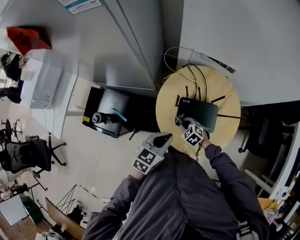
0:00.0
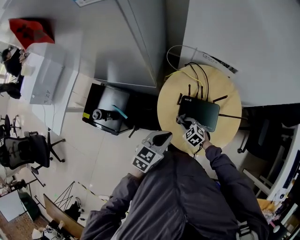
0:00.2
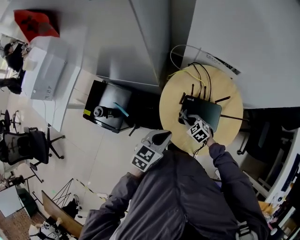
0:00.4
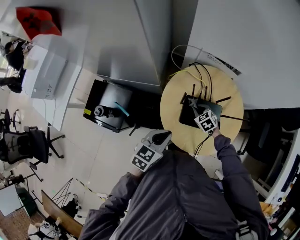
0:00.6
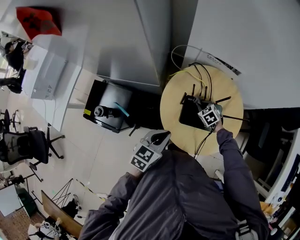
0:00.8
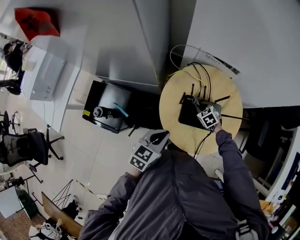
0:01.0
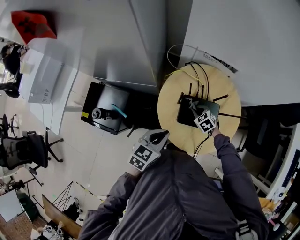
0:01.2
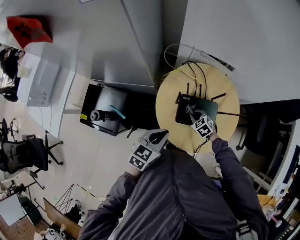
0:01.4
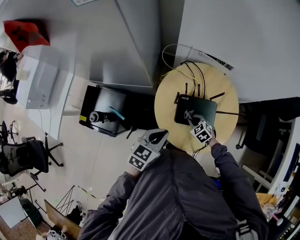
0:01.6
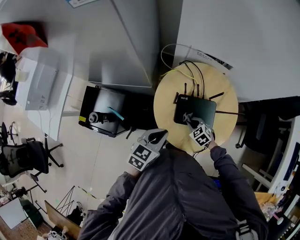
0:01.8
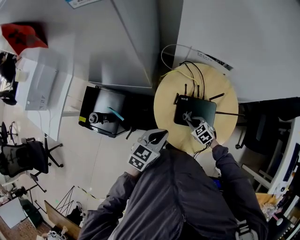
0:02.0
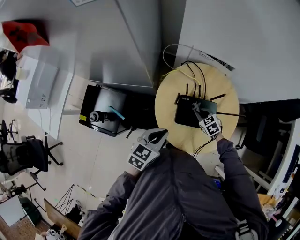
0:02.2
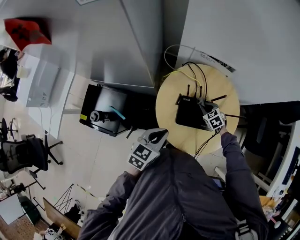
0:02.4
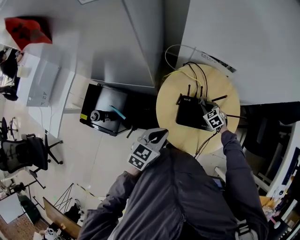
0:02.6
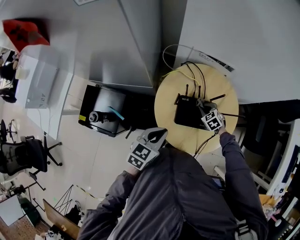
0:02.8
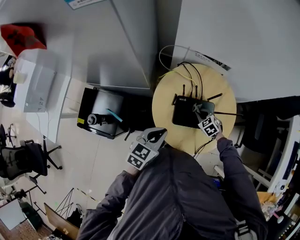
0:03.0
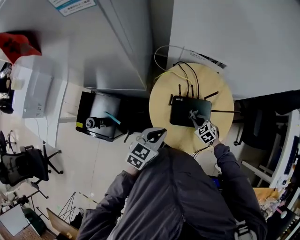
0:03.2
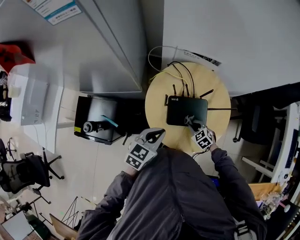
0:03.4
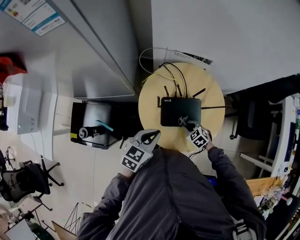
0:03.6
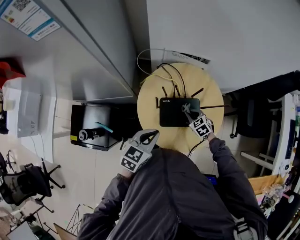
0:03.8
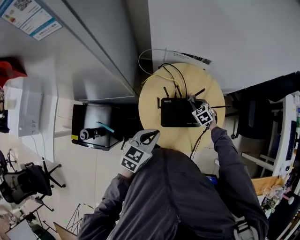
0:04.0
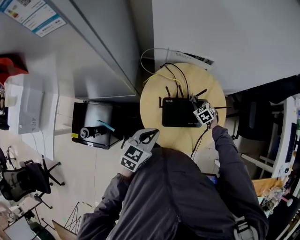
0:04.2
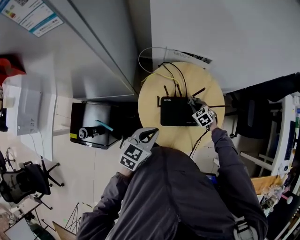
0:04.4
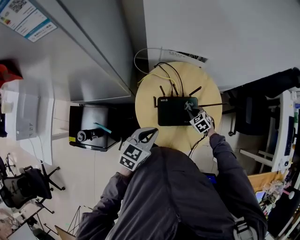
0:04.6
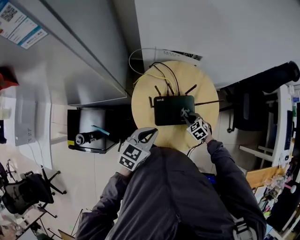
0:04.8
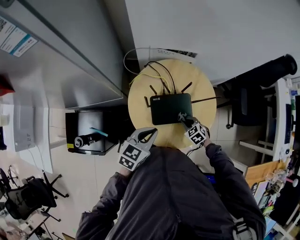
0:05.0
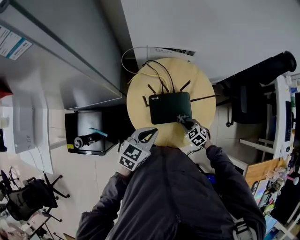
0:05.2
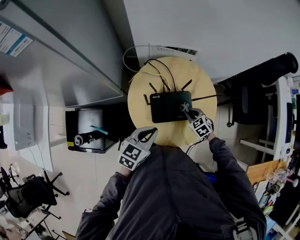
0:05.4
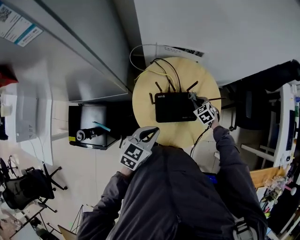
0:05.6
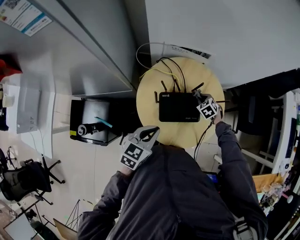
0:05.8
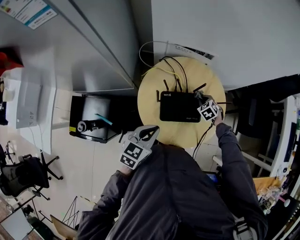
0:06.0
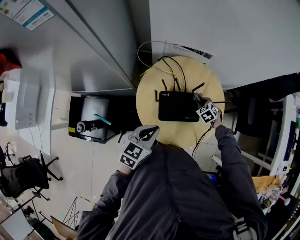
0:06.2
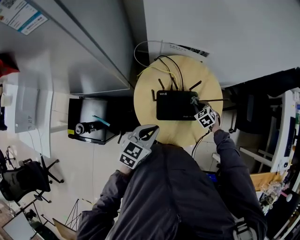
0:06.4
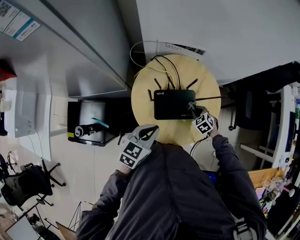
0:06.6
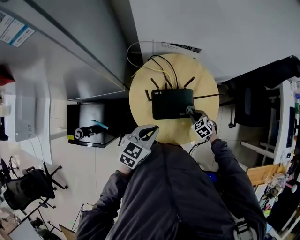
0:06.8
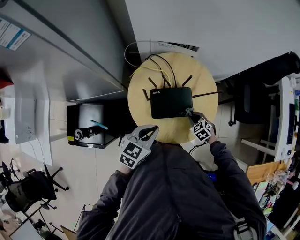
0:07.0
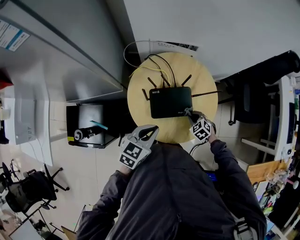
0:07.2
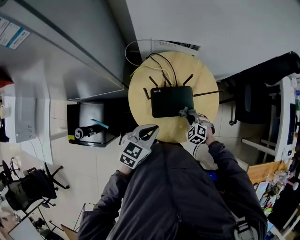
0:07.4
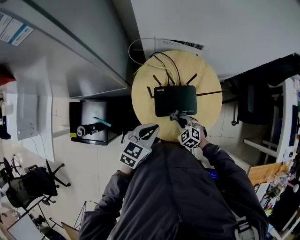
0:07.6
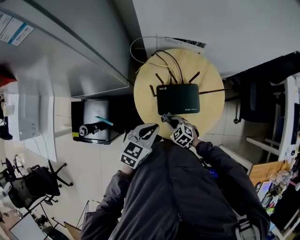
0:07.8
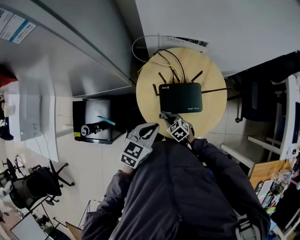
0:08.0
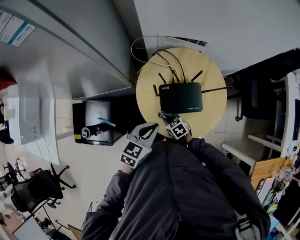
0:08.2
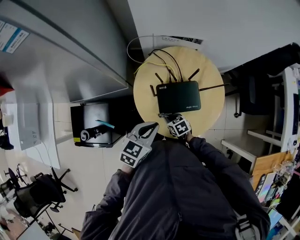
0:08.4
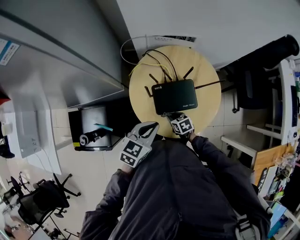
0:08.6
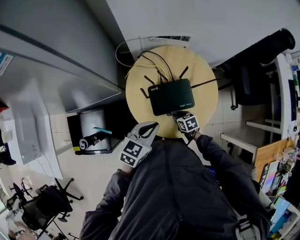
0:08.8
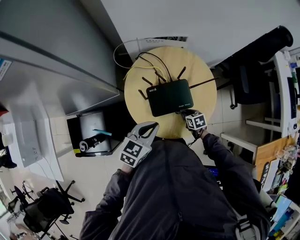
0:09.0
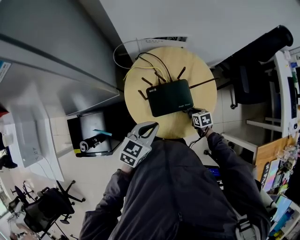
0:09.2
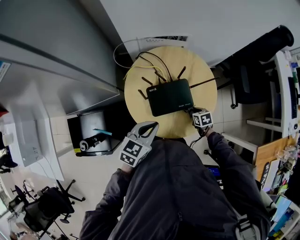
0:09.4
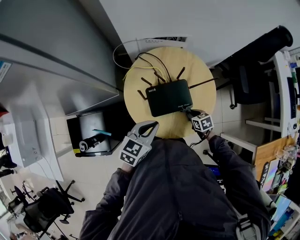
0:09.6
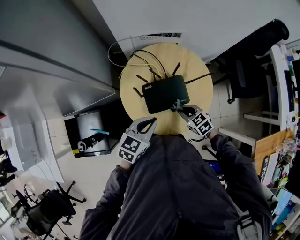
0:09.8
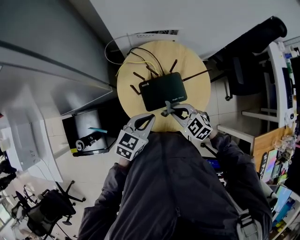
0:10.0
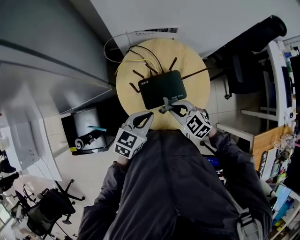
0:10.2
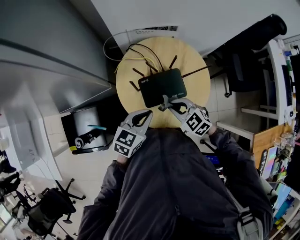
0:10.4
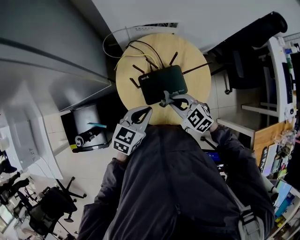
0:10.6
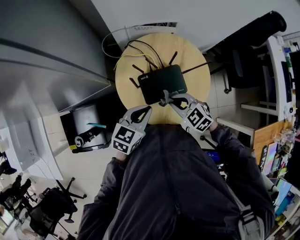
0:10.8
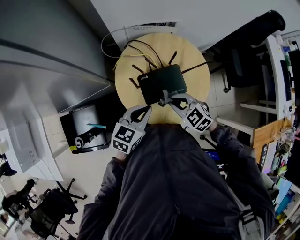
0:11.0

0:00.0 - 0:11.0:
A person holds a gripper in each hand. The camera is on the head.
0:00.0 - 0:01.6: The right gripper is displaced to the right by roughly 5 cm, and goes forward and returns, approximately 10 cm each way.
0:01.6 - 0:03.2: The right gripper shifts roughly 5 cm to the right, and goes forward and returns, roughly 10 cm each way.
0:03.2 - 0:04.8: The right gripper goes forward and backward, roughly 15 cm each way, reversing 2 times.
0:04.8 - 0:06.2: The right gripper goes some 10 cm forward.
0:06.2 - 0:07.8: The right gripper moves backward and to the left, some 25 cm.
0:07.8 - 0:09.4: The right gripper heads to the right, covering about 20 cm, and rotates around the line of its fingers by some 50 degrees, clockwise from behind.
0:09.4 - 0:11.0: The right gripper moves upward and to the left, about 25 cm, and rolls counterclockwise, seen from behind, by some 40 degrees.

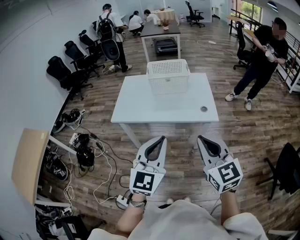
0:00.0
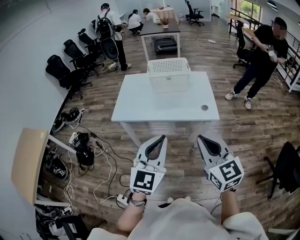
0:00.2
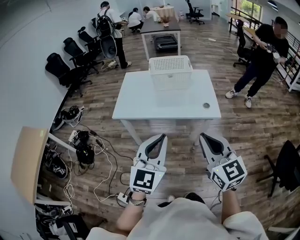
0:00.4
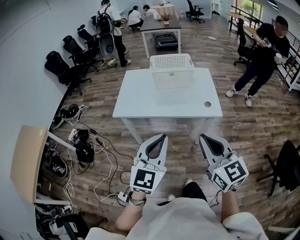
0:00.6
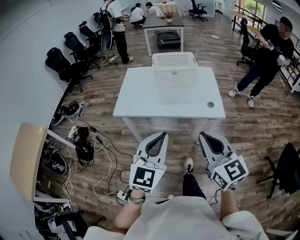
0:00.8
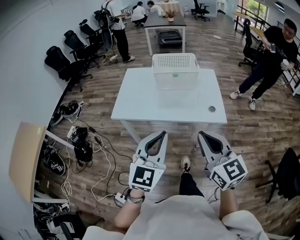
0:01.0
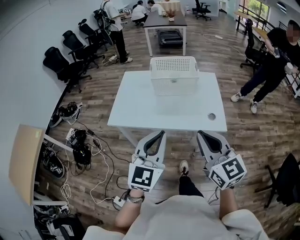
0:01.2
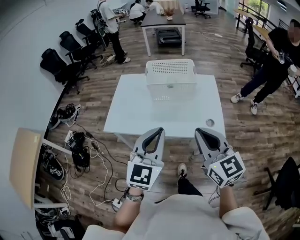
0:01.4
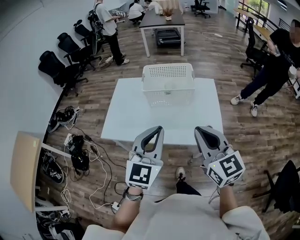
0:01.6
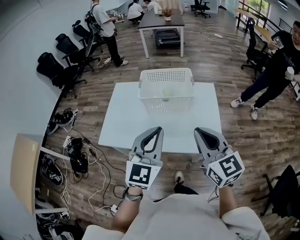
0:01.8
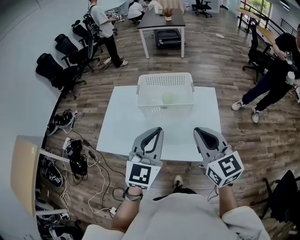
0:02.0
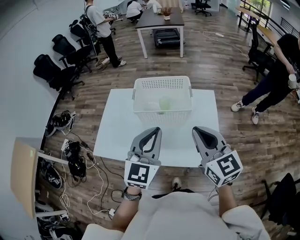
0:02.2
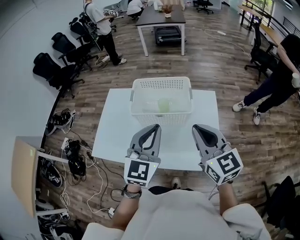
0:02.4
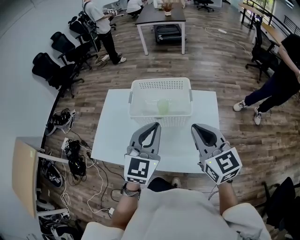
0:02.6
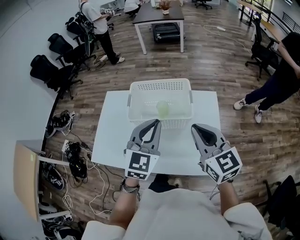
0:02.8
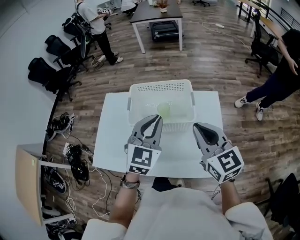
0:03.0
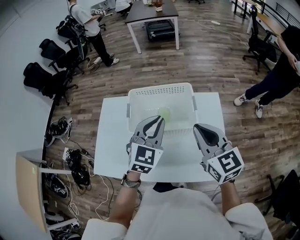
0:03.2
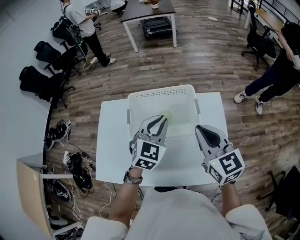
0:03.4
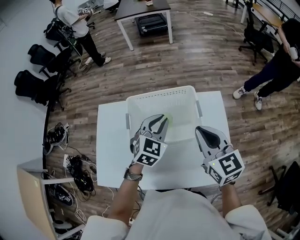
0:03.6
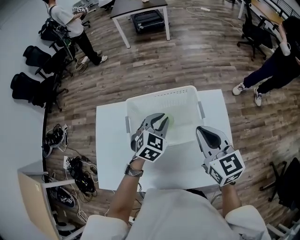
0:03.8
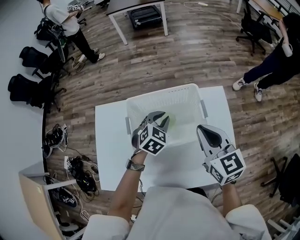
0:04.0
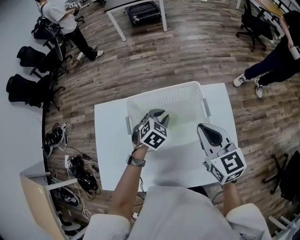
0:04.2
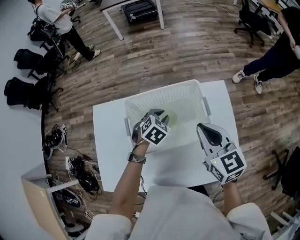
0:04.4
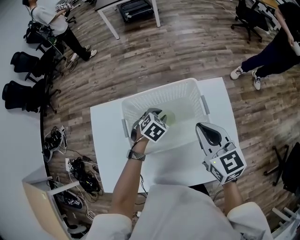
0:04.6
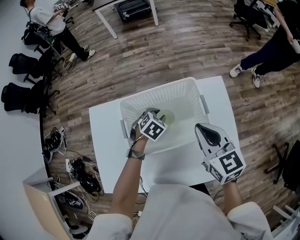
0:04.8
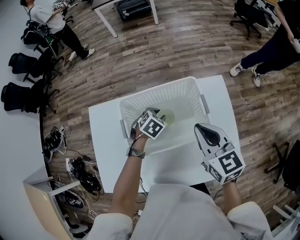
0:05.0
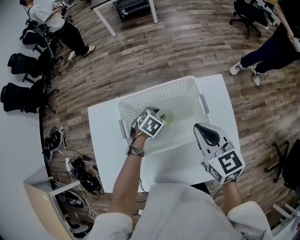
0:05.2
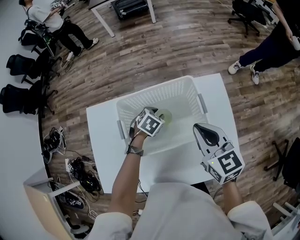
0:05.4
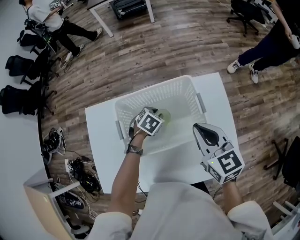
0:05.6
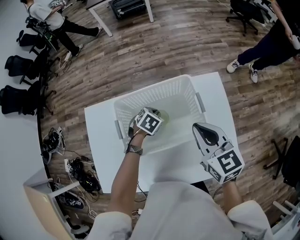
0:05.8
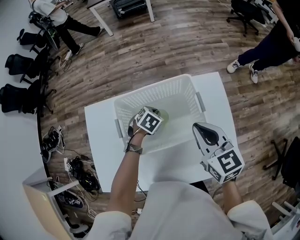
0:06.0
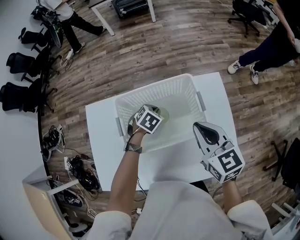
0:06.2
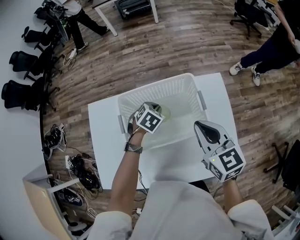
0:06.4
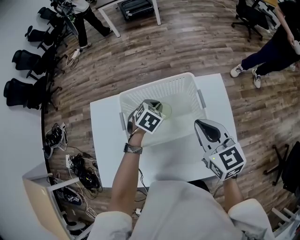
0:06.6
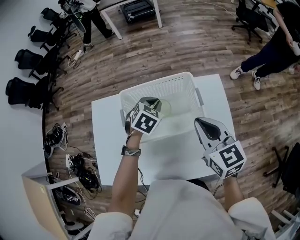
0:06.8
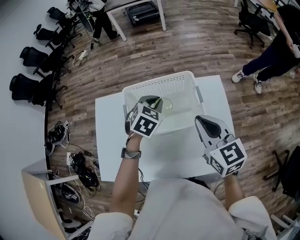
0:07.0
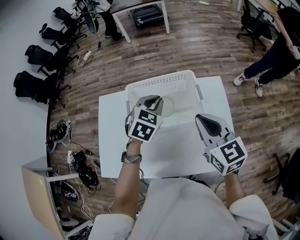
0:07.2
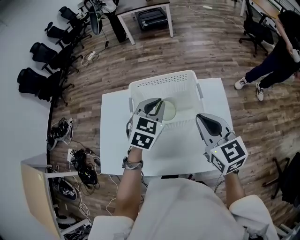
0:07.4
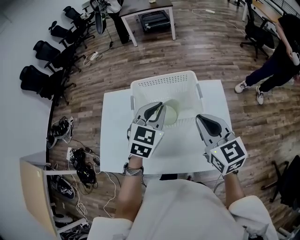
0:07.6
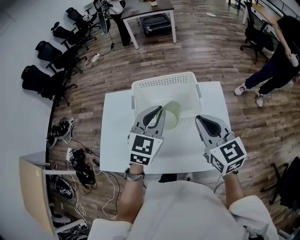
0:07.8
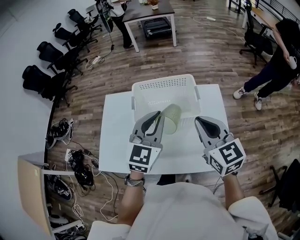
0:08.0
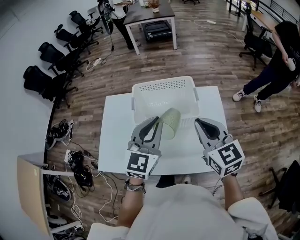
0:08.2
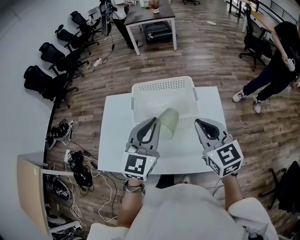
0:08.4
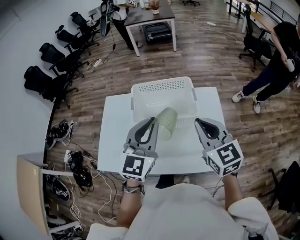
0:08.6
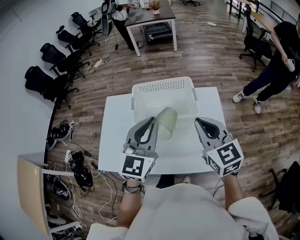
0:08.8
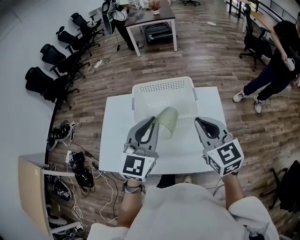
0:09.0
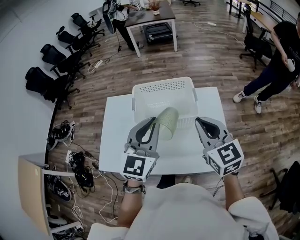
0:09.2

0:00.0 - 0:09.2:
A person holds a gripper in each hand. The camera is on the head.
0:00.0 - 0:01.6: Both grippers move forward, roughly 25 cm.
0:01.6 - 0:03.0: The two grippers go approximately 30 cm forward.
0:03.0 - 0:04.6: The left gripper heads downward and forward, covering about 35 cm, and tips its fingers downward by roughly 50 degrees. Meanwhile the right gripper travels forward and downward by some 15 cm.
0:04.6 - 0:06.2: The grippers make only small movements.
0:06.2 - 0:07.6: The right gripper travels backward and upward by about 15 cm. The left gripper moves upward and backward, roughly 30 cm, and angles its fingers upward, by roughly 40 degrees.
0:07.6 - 0:09.2: The left gripper goes about 10 cm backward and upward, and changes its angle by roughly 20 degrees.

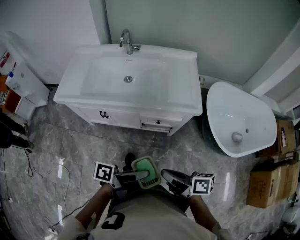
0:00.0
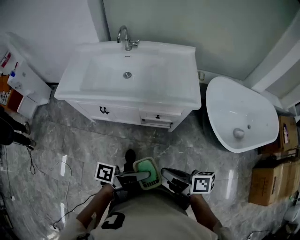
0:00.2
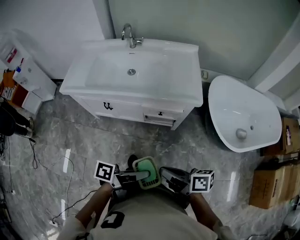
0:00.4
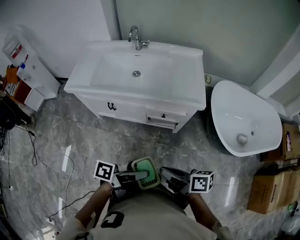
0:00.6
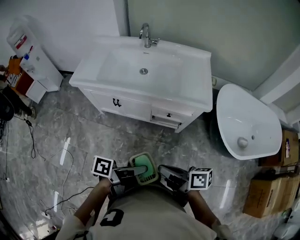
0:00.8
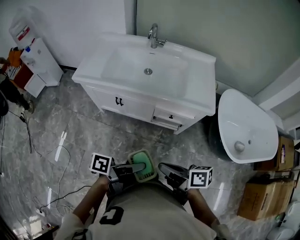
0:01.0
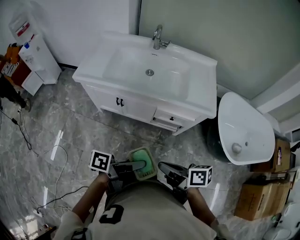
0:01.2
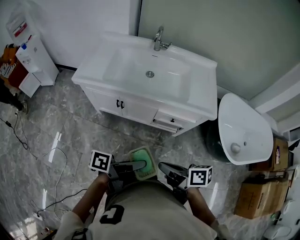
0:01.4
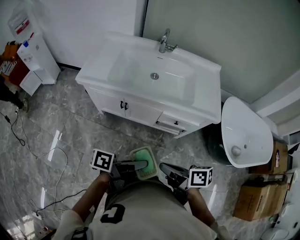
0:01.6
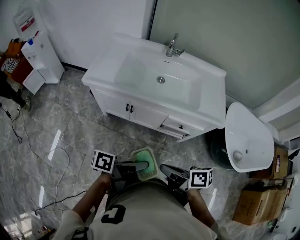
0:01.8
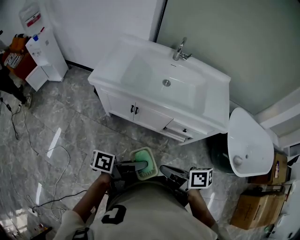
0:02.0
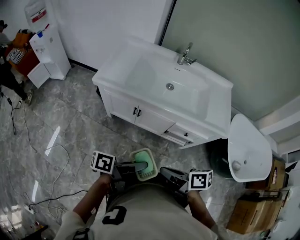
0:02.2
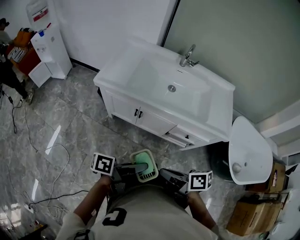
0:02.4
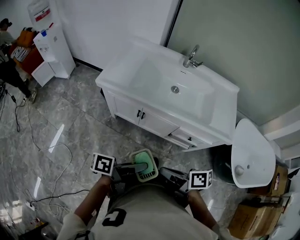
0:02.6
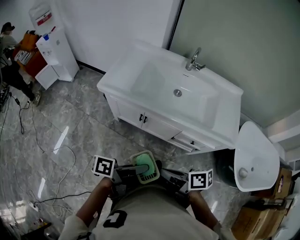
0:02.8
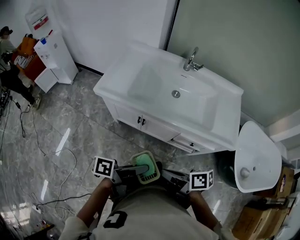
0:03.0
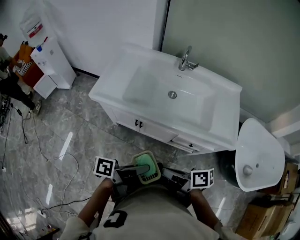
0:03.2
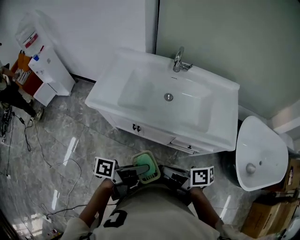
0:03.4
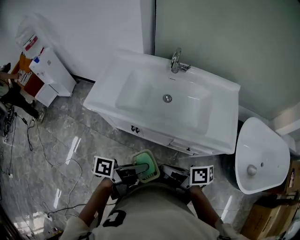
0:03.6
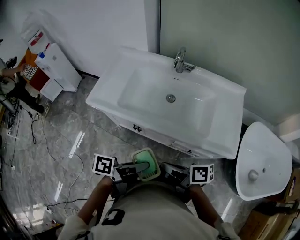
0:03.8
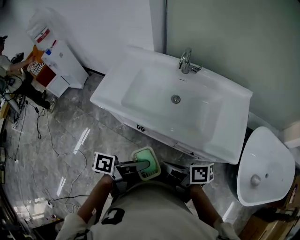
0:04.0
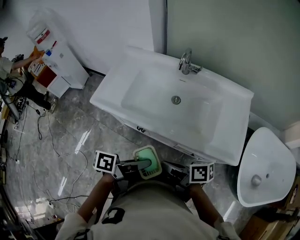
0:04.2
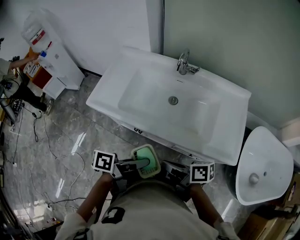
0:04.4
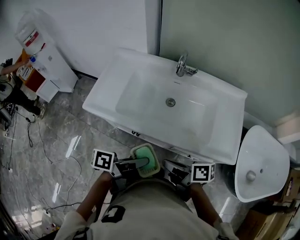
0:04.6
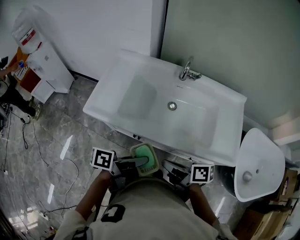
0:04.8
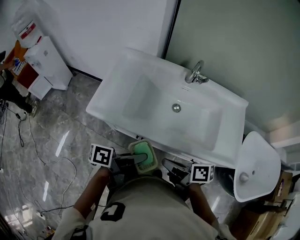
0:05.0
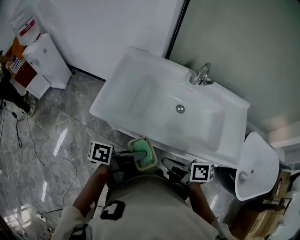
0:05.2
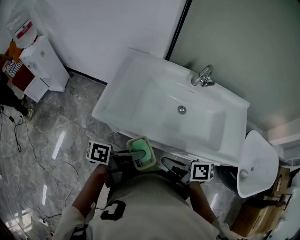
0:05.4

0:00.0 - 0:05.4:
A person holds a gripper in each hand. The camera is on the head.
0:00.0 - 0:01.4: The left gripper moves roughly 10 cm.
0:01.4 - 0:02.8: The left gripper moves about 15 cm.
0:02.8 - 0:04.0: The left gripper ends up approximately 15 cm from where it was.
0:04.0 - 0:05.4: The left gripper ends up about 20 cm from where it was.
